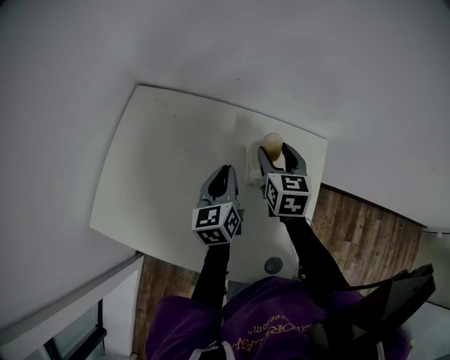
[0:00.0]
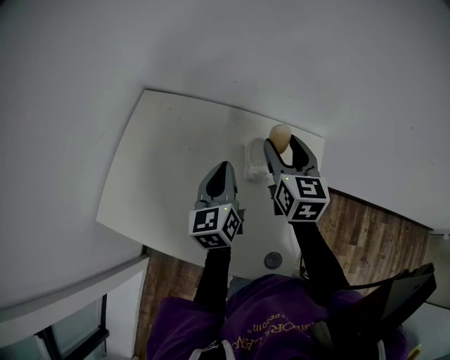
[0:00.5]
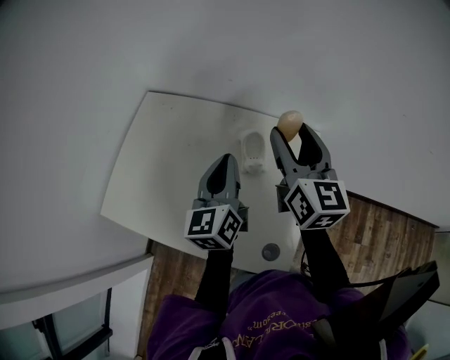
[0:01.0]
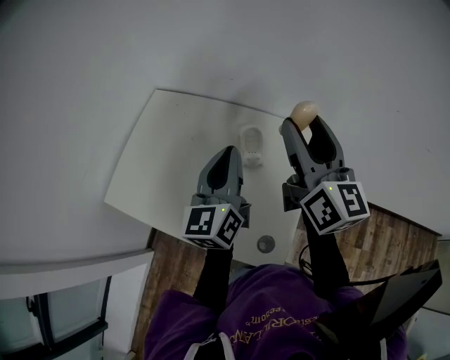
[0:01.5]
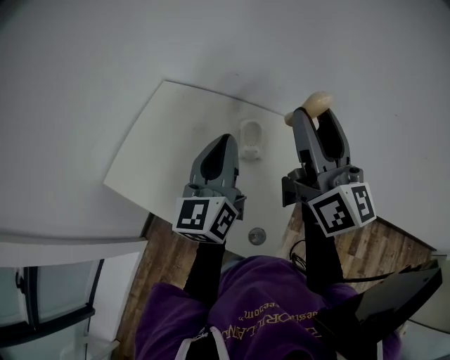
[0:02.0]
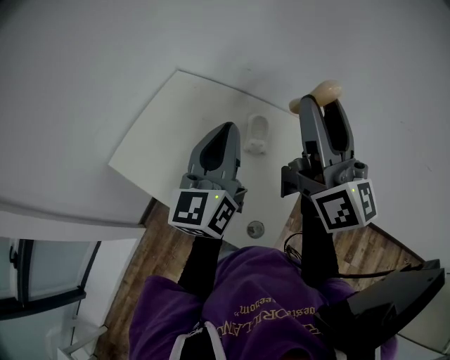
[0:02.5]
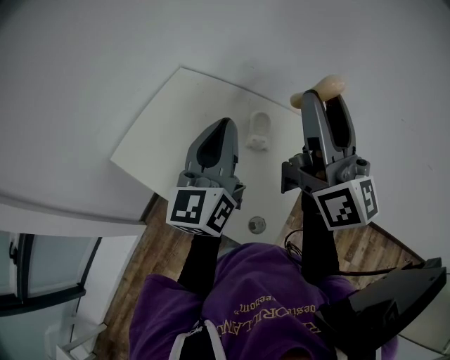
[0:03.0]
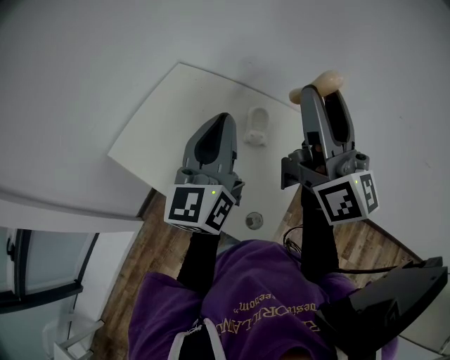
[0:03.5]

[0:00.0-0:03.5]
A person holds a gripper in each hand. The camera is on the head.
0:00.0 to 0:02.0: Both grippers travel together upward and backward, approximately 30 cm. The right gripper tilts its fingers approximately 50 degrees upward. Meanwhile the left gripper changes its angle by about 30 degrees.
0:02.0 to 0:03.5: The left gripper changes place by about 5 cm, while the right gripper ends up approximately 5 cm from where it was.

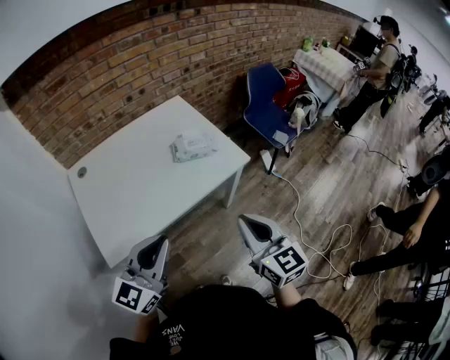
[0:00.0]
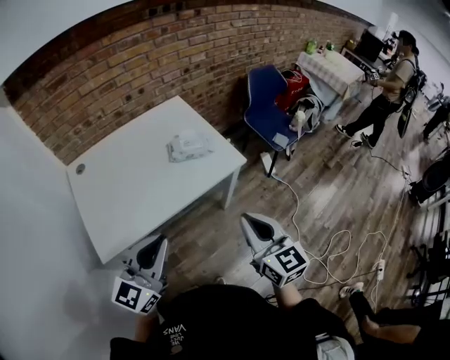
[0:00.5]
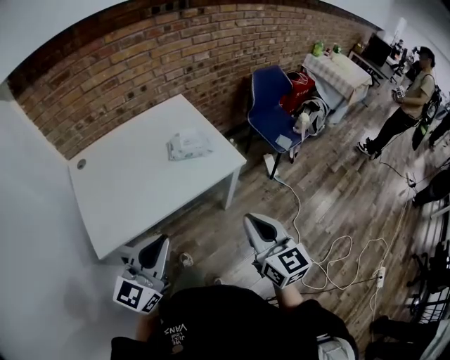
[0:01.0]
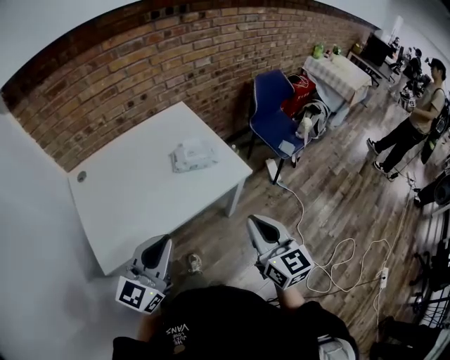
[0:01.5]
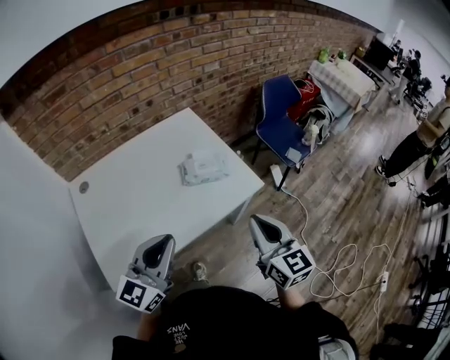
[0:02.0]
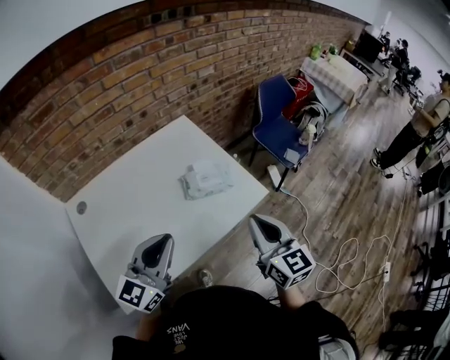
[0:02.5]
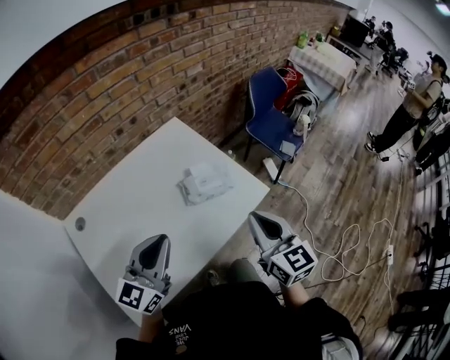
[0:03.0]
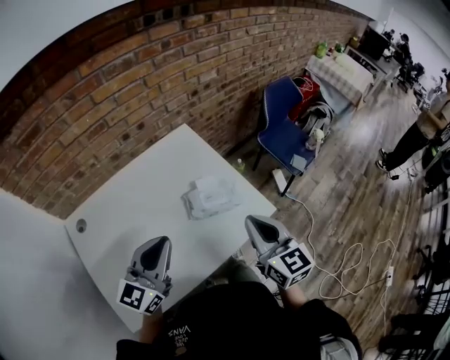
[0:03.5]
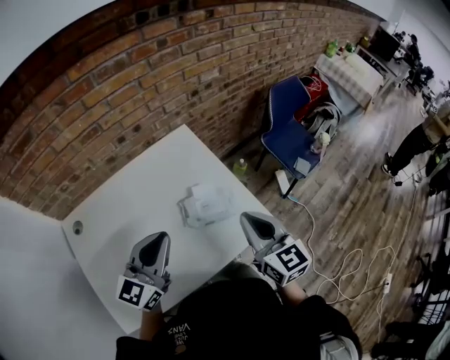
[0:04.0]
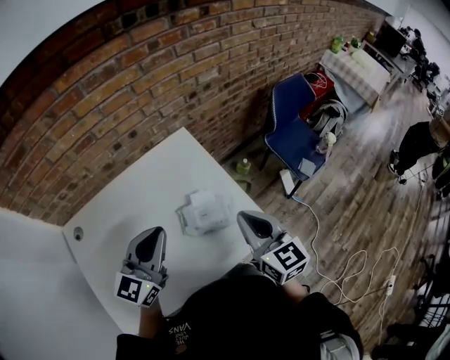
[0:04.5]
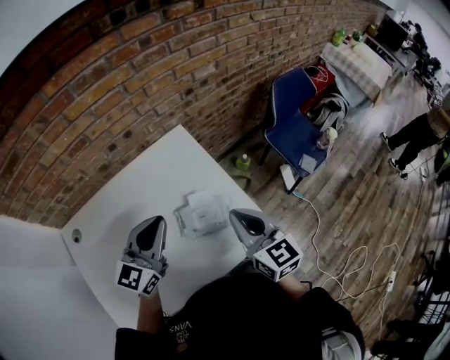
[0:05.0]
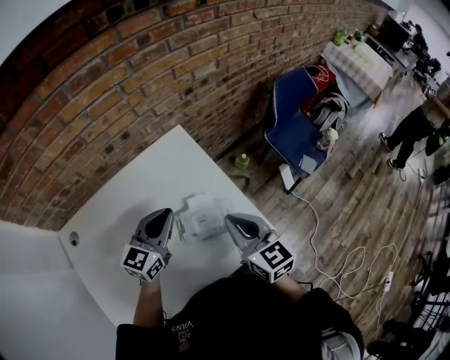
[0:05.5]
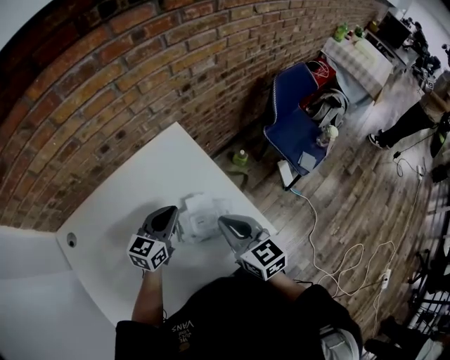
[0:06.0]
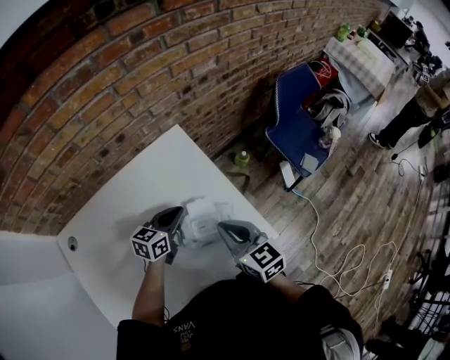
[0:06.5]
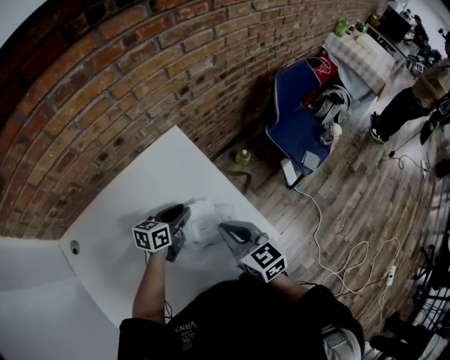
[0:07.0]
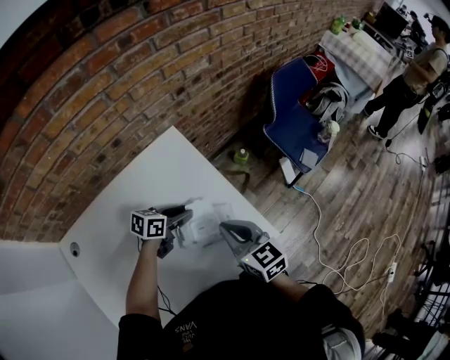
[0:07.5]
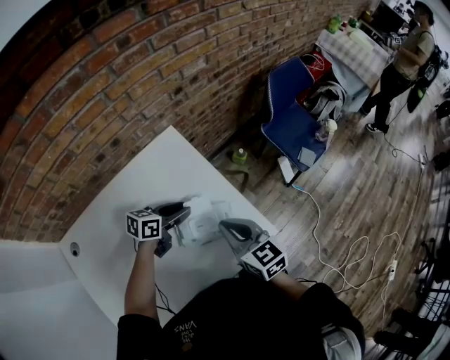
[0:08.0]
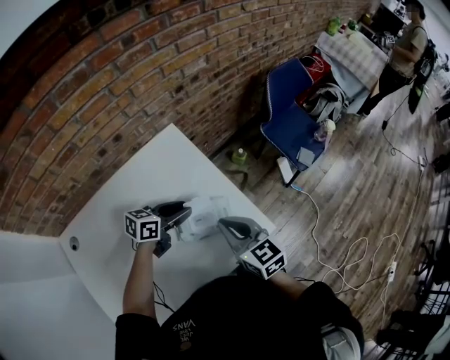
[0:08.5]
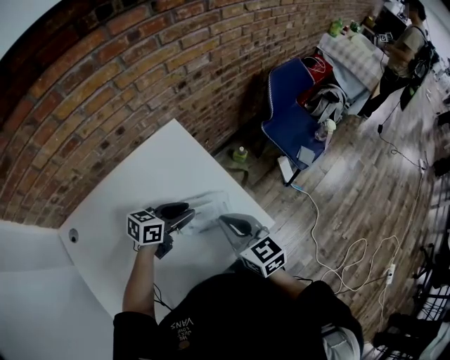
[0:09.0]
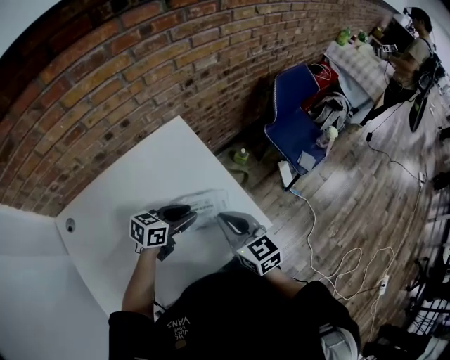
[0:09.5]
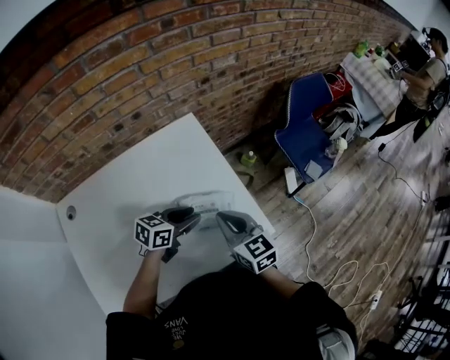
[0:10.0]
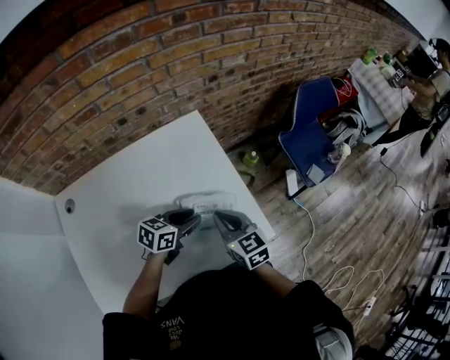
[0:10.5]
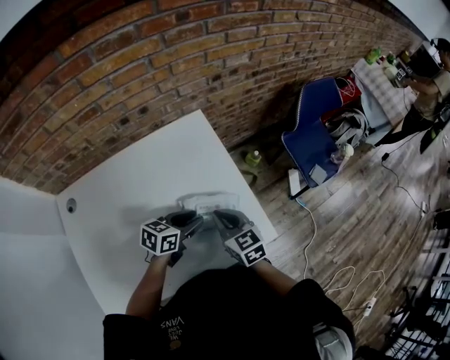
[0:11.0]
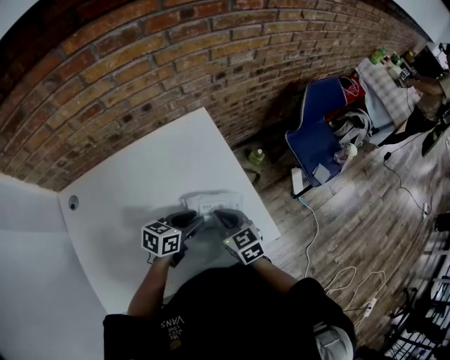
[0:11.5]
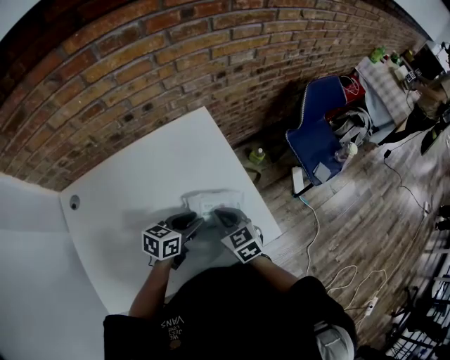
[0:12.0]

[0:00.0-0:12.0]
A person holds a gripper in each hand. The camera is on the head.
0:00.0 to 0:02.0: The two grippers go about 15 cm forward.
0:02.0 to 0:04.0: Both grippers travel together forward, some 20 cm.
0:04.0 to 0:06.0: The right gripper shifts about 10 cm downward and forward, while the left gripper goes approximately 25 cm forward and downward, and swivels some 20 degrees.
0:06.0 to 0:08.0: The left gripper is displaced downward by roughly 5 cm, rotates about 40 degrees, and opens.
0:08.0 to 0:10.0: The left gripper is displaced backward by roughly 10 cm.
0:10.0 to 0:12.0: The right gripper shifts roughly 10 cm downward.

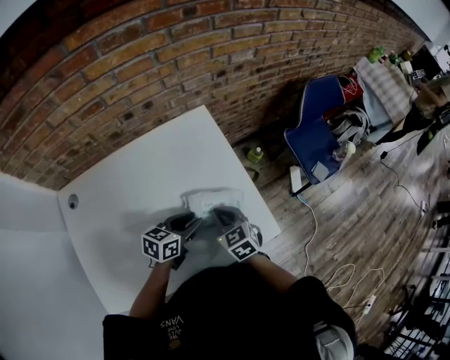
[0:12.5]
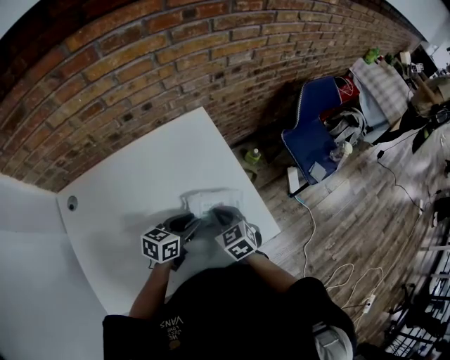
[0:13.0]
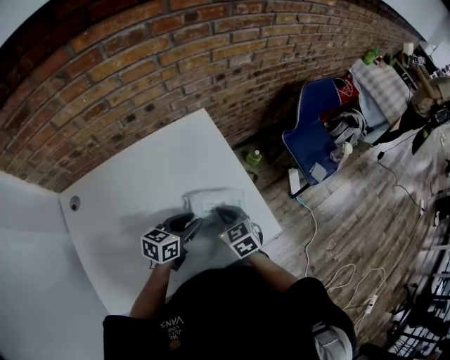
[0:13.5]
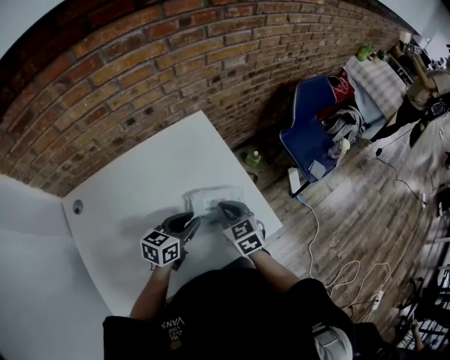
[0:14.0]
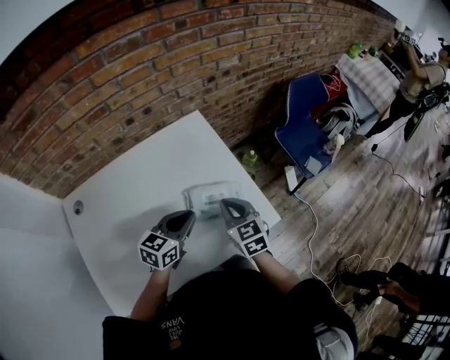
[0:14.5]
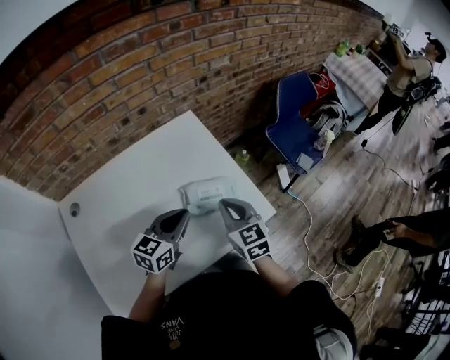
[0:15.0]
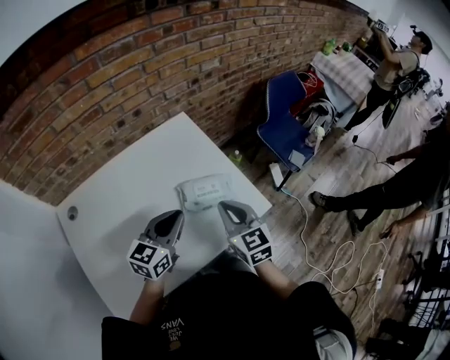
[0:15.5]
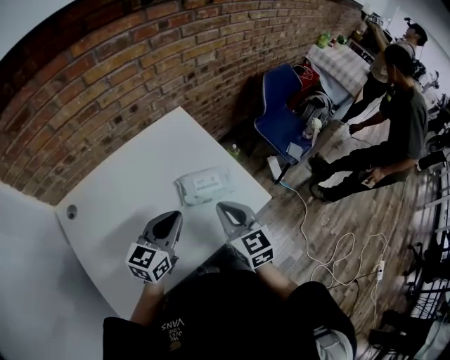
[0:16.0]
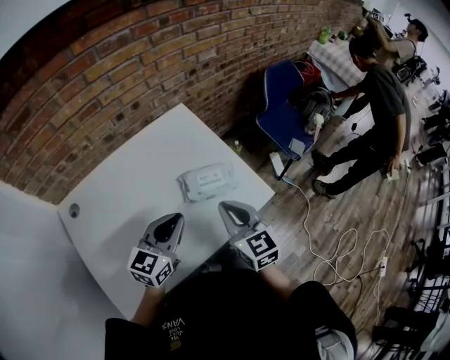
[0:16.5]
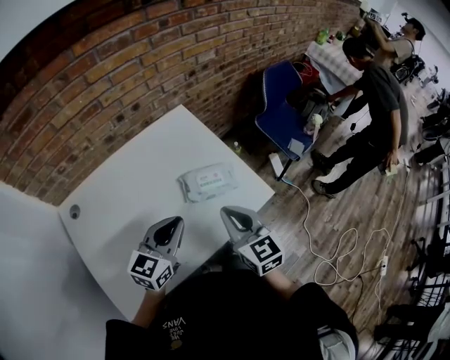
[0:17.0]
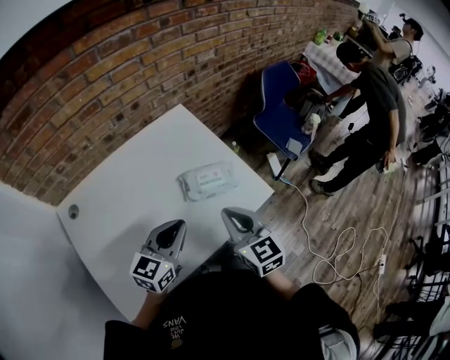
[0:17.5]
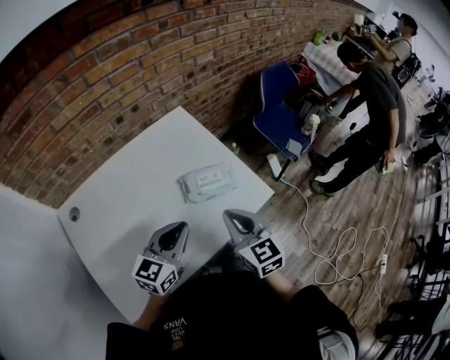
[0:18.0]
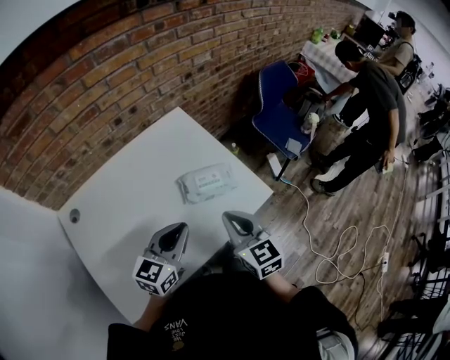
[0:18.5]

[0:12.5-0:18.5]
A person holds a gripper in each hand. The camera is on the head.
0:12.5 to 0:14.5: The grippers both shift upward by roughly 5 cm. The left gripper closes its fingers.
0:14.5 to 0:16.5: Both grippers move backward and upward, approximately 10 cm.
0:16.5 to 0:18.5: The grippers stay close to where they were, moving slightly.

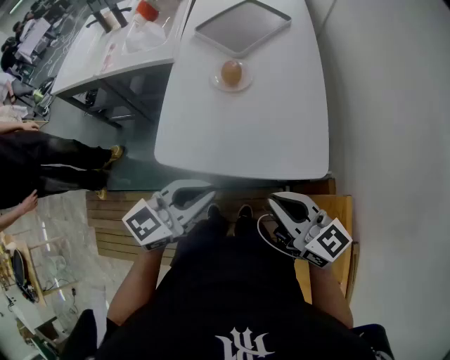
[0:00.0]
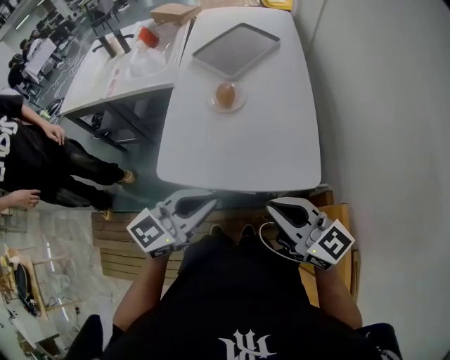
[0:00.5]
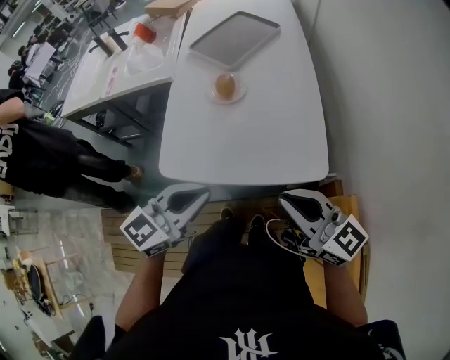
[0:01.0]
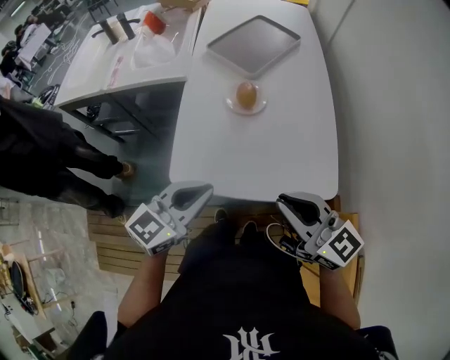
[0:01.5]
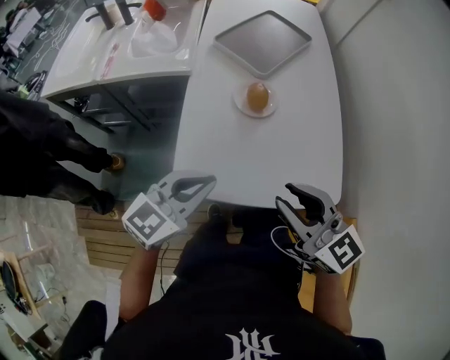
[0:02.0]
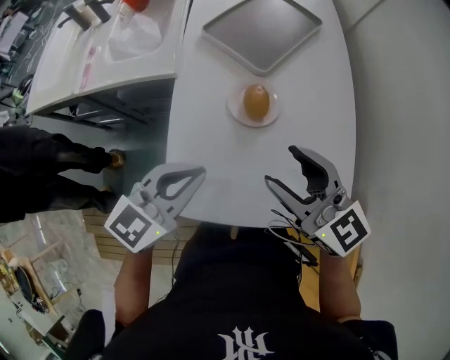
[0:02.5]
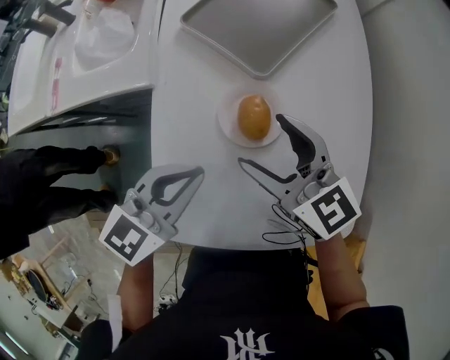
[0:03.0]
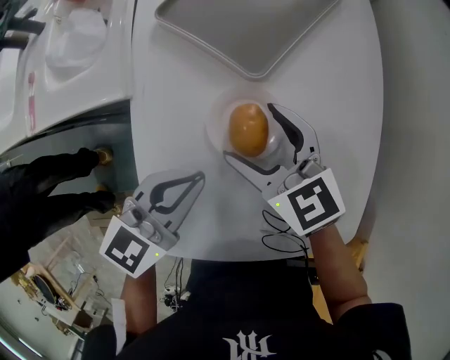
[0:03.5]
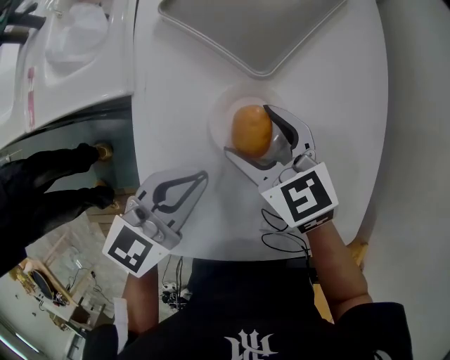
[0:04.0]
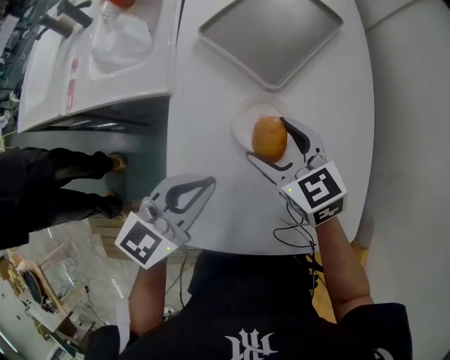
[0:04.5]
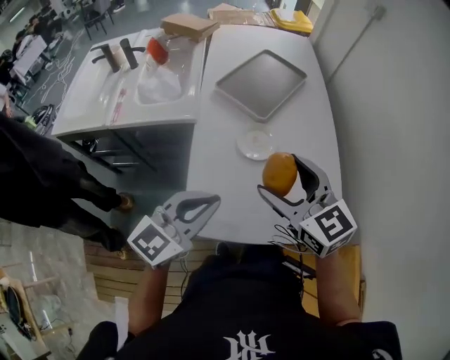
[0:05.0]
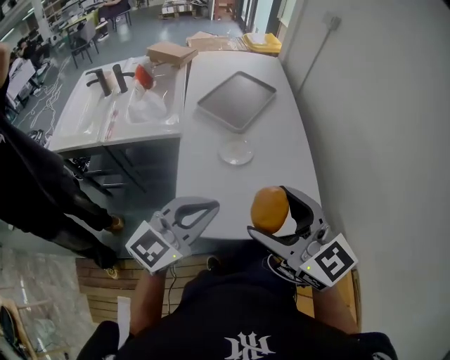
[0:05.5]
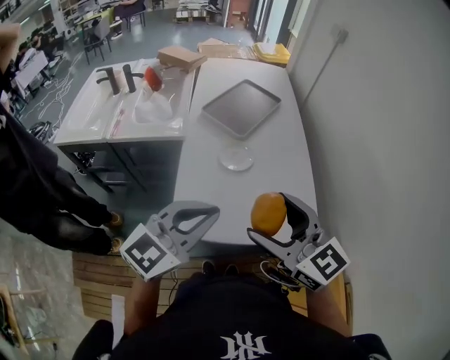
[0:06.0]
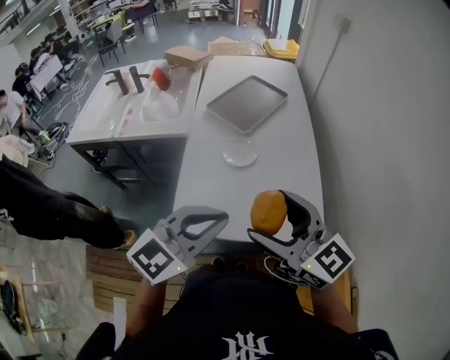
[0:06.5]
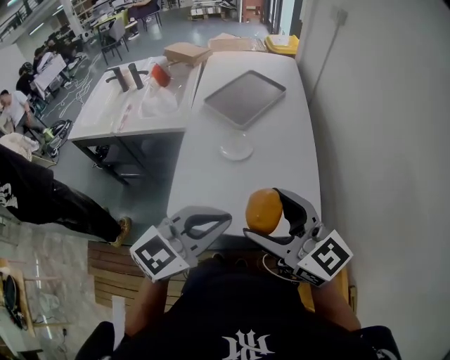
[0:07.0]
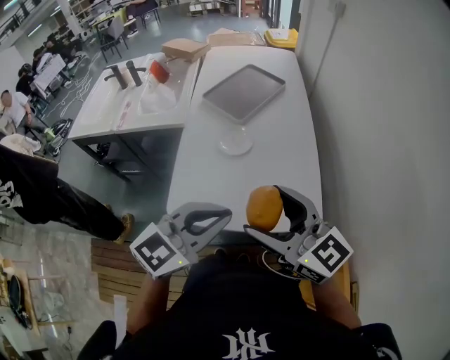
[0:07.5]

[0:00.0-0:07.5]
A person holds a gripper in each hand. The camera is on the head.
0:00.0 to 0:02.0: The right gripper heads forward, to the left and upward, covering some 15 cm. Meanwhile the left gripper is displaced to the left and forward by about 15 cm.
0:02.0 to 0:04.0: The two grippers go approximately 35 cm forward and downward. The right gripper turns by about 20 degrees, and opens.
0:04.0 to 0:05.5: Both grippers travel together upward and backward, approximately 40 cm. The left gripper turns by about 30 degrees, while the right gripper rotates some 30 degrees.
0:05.5 to 0:07.5: The grippers both shift to the right by about 10 cm.
